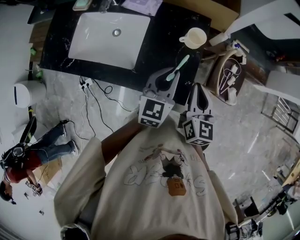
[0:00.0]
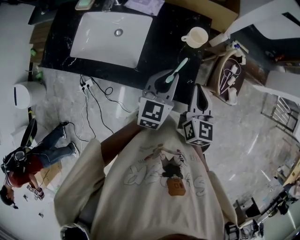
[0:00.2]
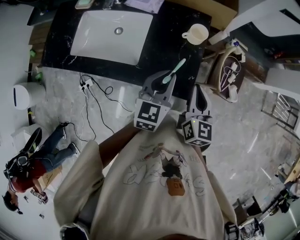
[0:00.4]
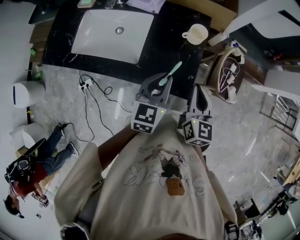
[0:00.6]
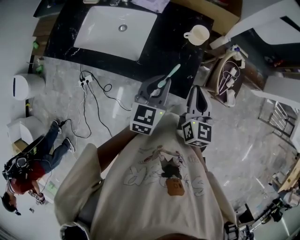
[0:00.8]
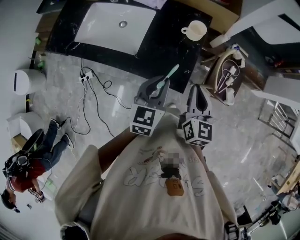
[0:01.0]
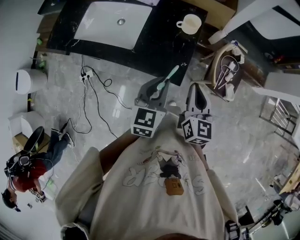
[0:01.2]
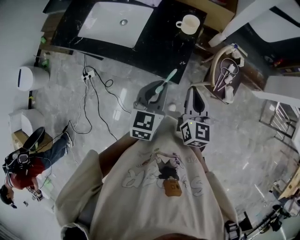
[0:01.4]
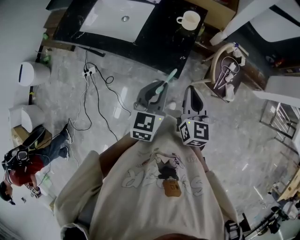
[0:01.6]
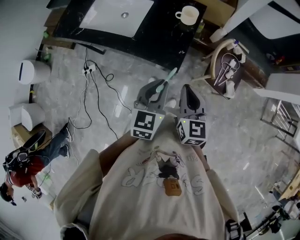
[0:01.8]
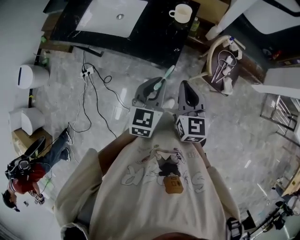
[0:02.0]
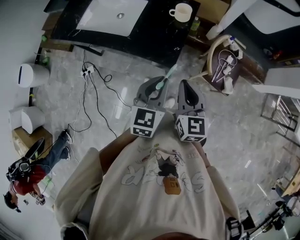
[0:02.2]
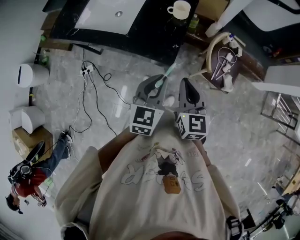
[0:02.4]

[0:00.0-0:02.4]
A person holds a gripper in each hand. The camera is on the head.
0.0 to 1.2 s: Both grippers travel together backward, about 15 cm.
1.2 to 2.4 s: The left gripper is displaced backward and to the right by about 10 cm; the right gripper moves backward, approximately 10 cm.

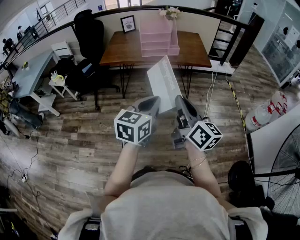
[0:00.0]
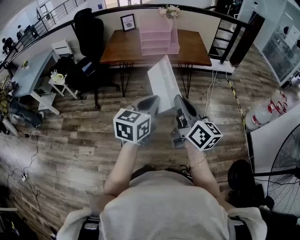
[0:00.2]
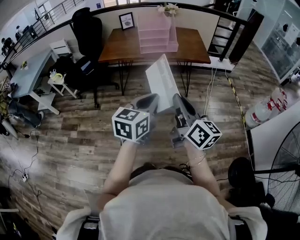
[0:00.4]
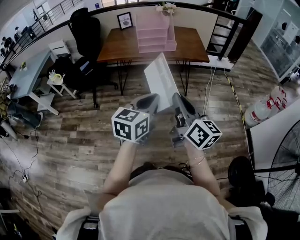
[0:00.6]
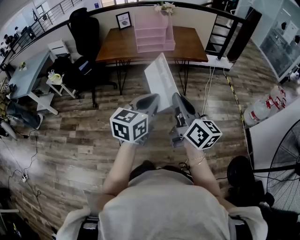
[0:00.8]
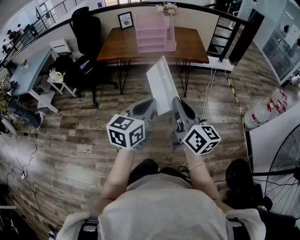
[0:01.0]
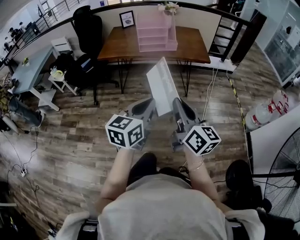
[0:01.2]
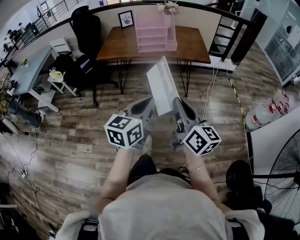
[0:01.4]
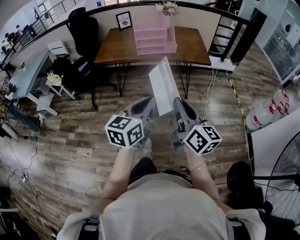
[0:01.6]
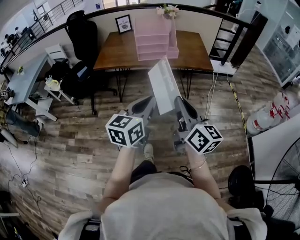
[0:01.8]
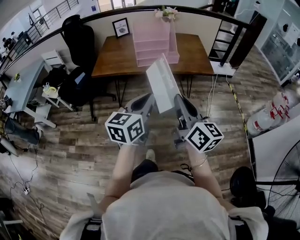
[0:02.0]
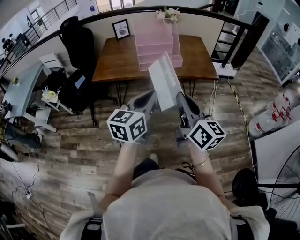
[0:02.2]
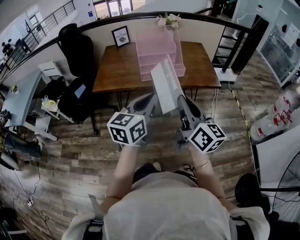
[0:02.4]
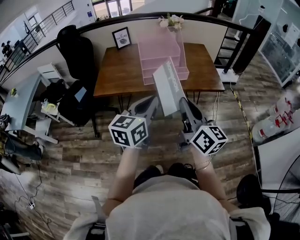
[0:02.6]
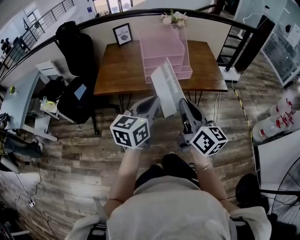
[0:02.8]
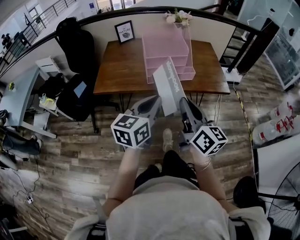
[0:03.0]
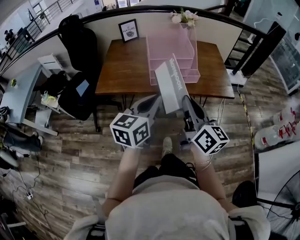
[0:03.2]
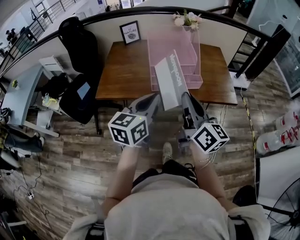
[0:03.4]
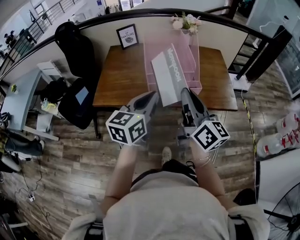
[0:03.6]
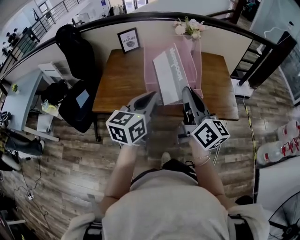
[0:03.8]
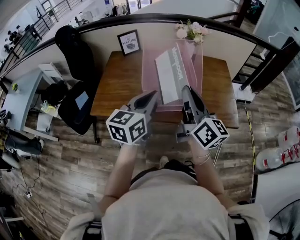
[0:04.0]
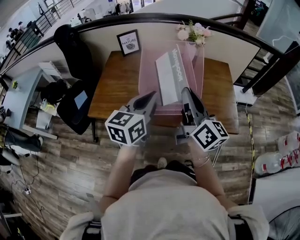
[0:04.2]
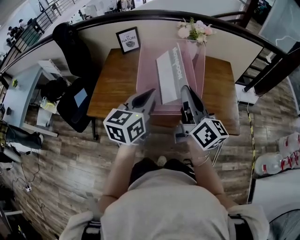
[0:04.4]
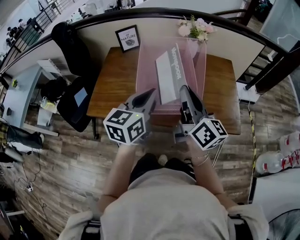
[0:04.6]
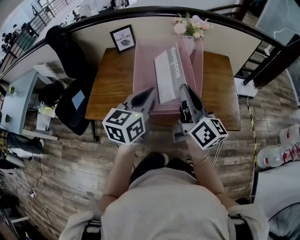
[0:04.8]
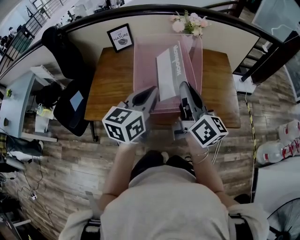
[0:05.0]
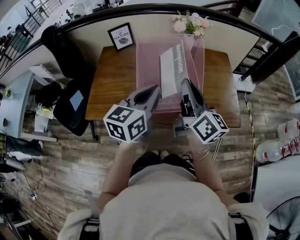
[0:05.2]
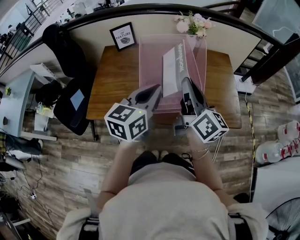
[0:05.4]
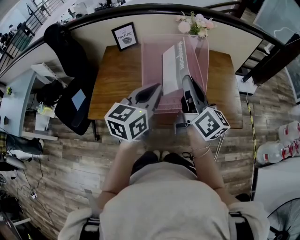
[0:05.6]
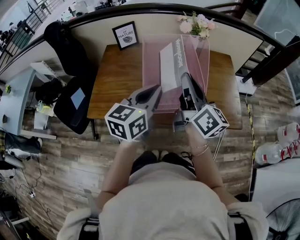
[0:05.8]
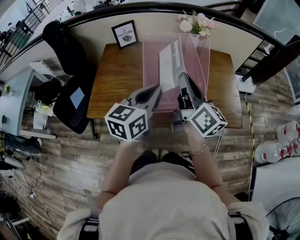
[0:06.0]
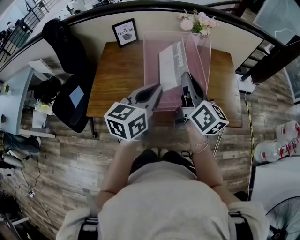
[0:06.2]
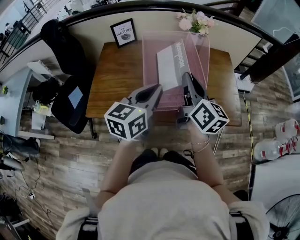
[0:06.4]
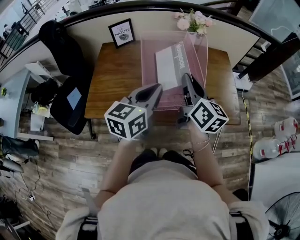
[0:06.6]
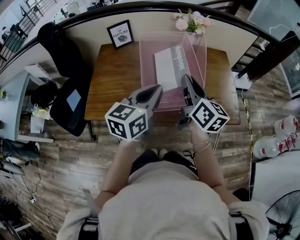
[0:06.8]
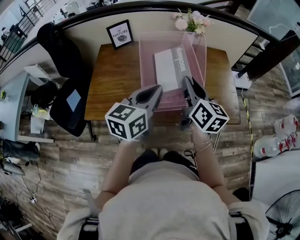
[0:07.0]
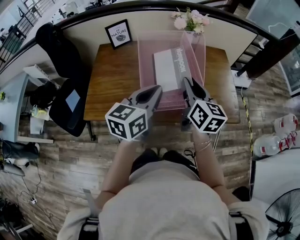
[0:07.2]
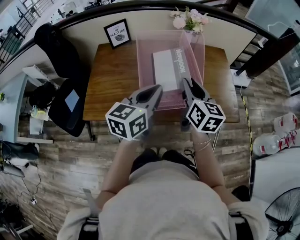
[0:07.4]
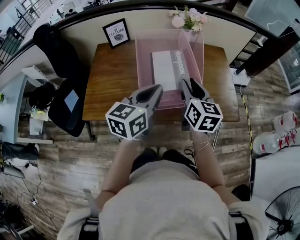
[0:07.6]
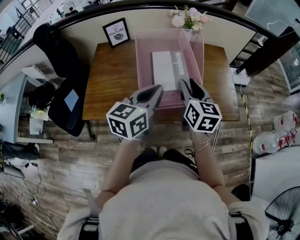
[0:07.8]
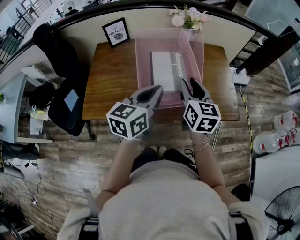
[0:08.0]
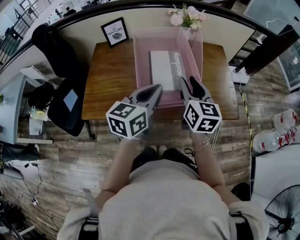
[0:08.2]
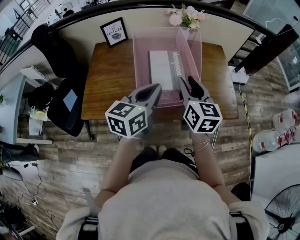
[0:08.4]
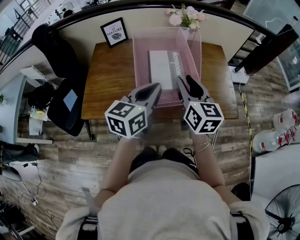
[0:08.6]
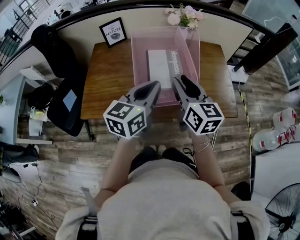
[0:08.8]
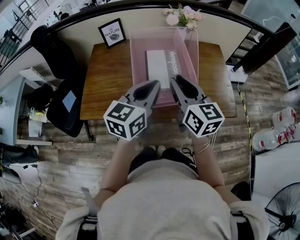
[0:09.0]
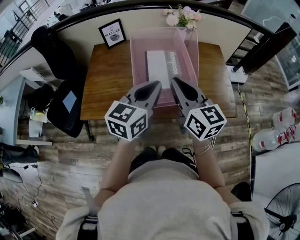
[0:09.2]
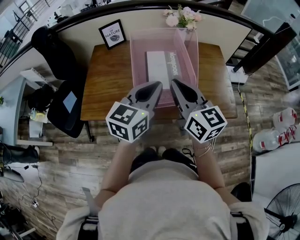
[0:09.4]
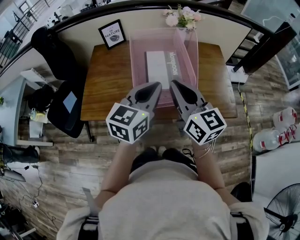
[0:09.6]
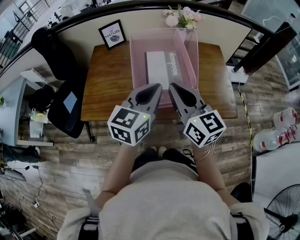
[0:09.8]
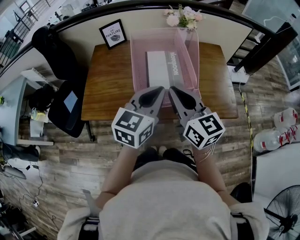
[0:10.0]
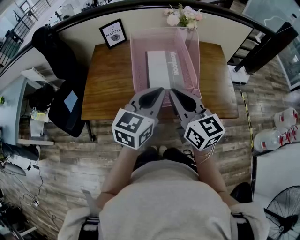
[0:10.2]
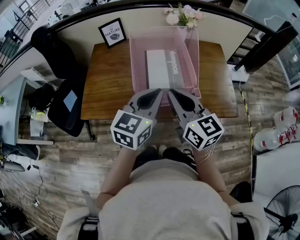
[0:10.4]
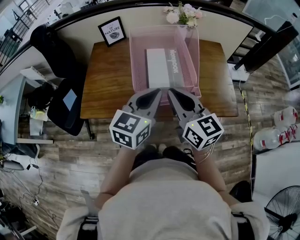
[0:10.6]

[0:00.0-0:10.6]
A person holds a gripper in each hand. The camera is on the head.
0.0 to 1.6 s: The grippers stay close to where they were, moving slightly.
1.6 to 3.0 s: The grippers both shift forward and to the left by roughly 30 cm.
3.0 to 4.6 s: Both grippers move forward, some 30 cm.
4.6 to 6.0 s: The right gripper changes place by roughly 5 cm.
6.0 to 7.6 s: The right gripper travels downward by approximately 5 cm, turns by roughly 40 degrees, and opens up.
7.6 to 9.0 s: The right gripper ends up approximately 5 cm from where it was.
9.0 to 10.6 s: The right gripper closes.

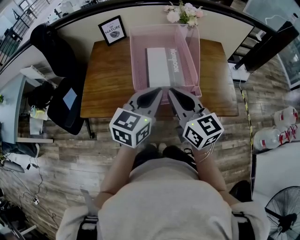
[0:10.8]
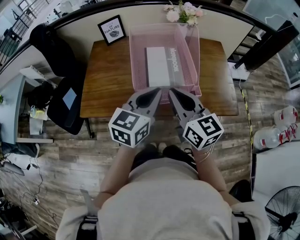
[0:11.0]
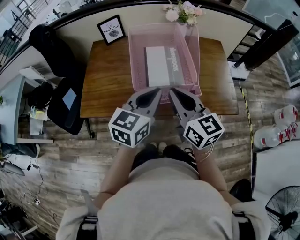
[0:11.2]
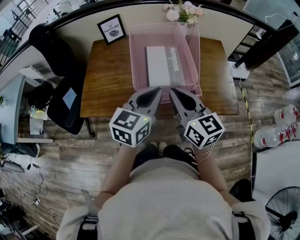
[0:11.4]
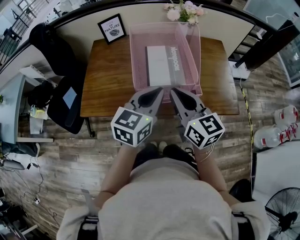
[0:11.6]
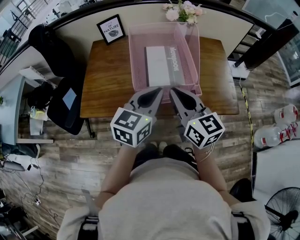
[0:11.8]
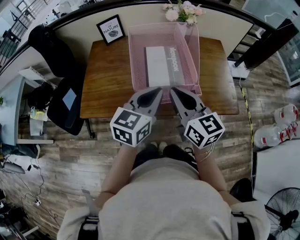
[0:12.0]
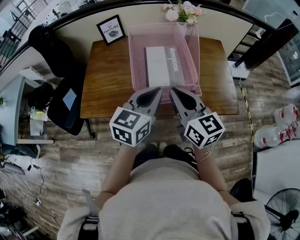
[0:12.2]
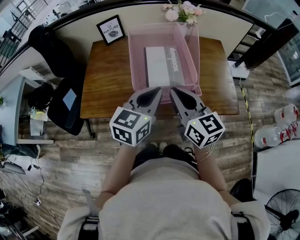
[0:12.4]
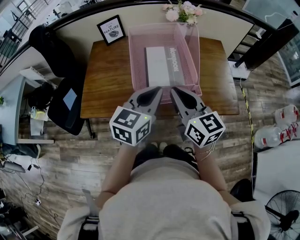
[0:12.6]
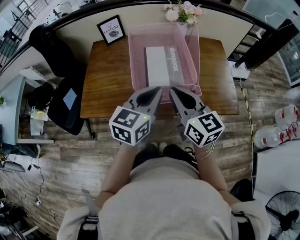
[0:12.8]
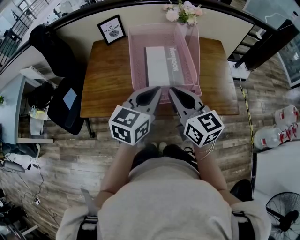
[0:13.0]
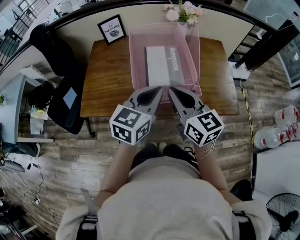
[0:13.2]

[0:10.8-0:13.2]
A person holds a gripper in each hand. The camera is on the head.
10.8 to 13.2 s: The two grippers keep their place.

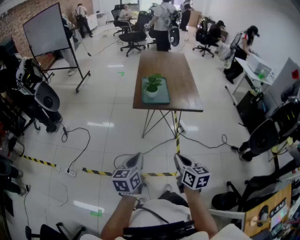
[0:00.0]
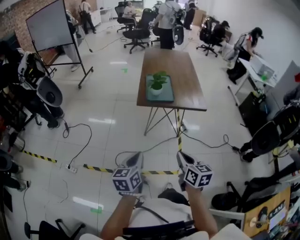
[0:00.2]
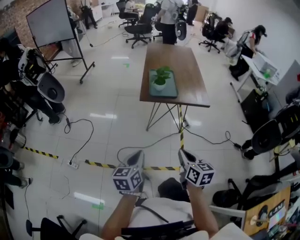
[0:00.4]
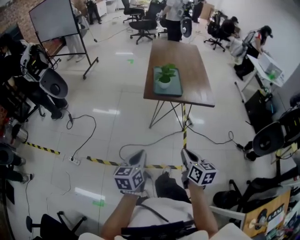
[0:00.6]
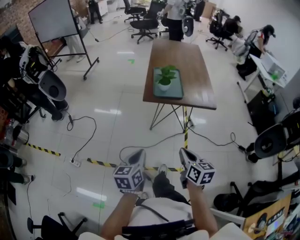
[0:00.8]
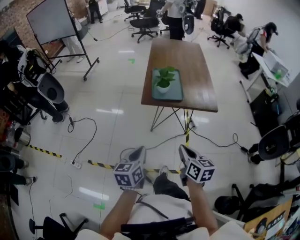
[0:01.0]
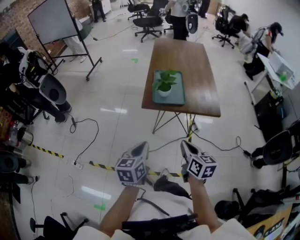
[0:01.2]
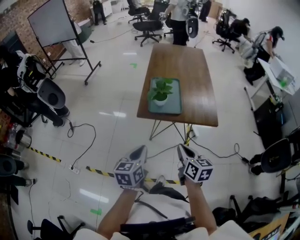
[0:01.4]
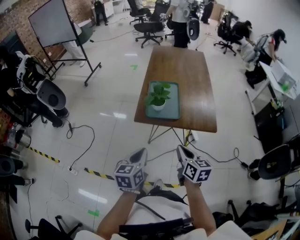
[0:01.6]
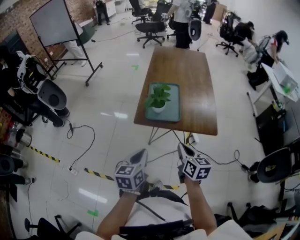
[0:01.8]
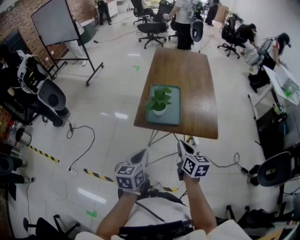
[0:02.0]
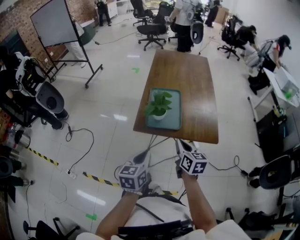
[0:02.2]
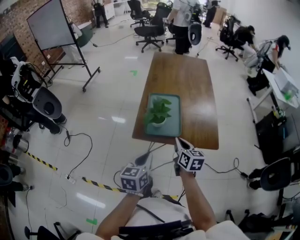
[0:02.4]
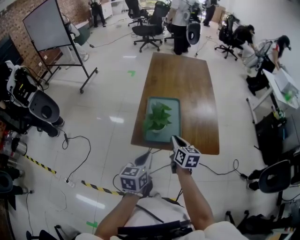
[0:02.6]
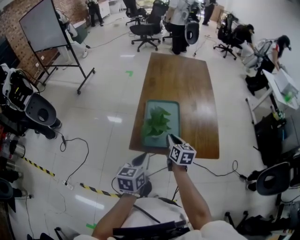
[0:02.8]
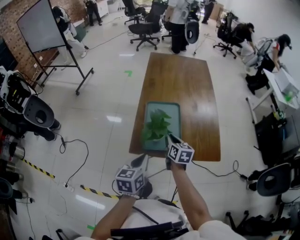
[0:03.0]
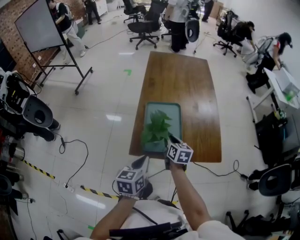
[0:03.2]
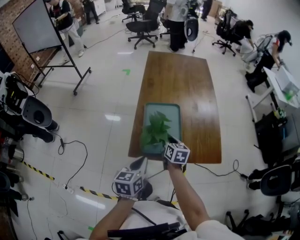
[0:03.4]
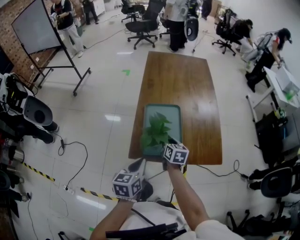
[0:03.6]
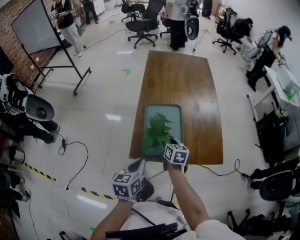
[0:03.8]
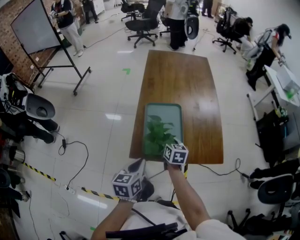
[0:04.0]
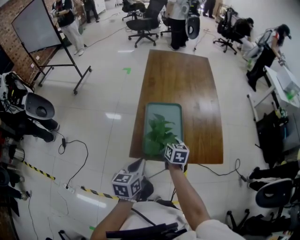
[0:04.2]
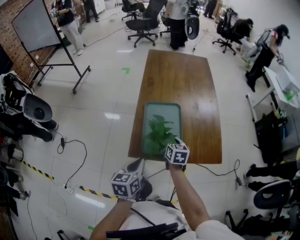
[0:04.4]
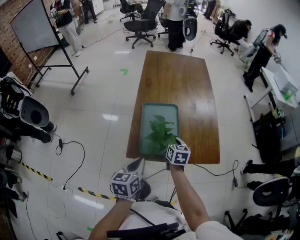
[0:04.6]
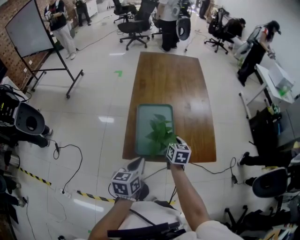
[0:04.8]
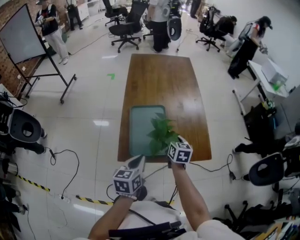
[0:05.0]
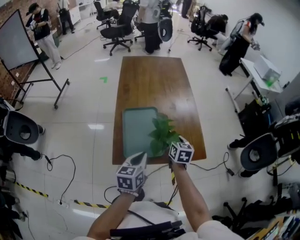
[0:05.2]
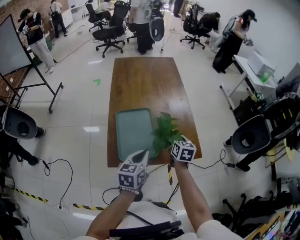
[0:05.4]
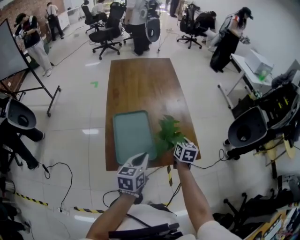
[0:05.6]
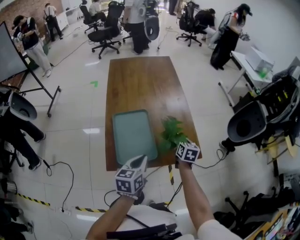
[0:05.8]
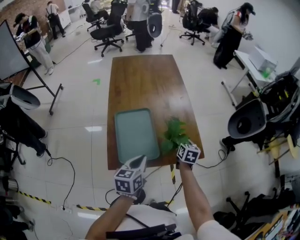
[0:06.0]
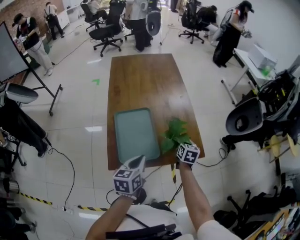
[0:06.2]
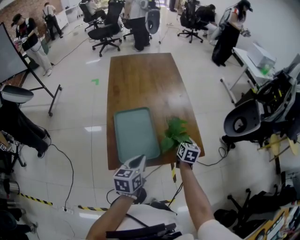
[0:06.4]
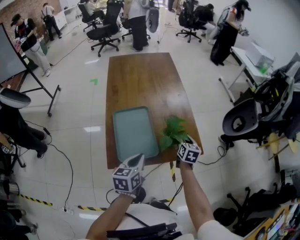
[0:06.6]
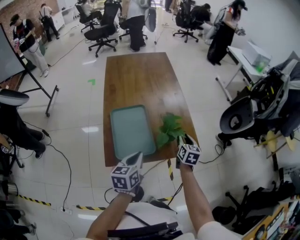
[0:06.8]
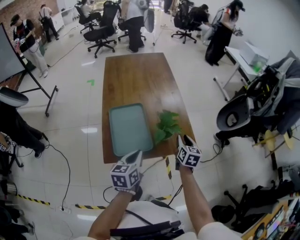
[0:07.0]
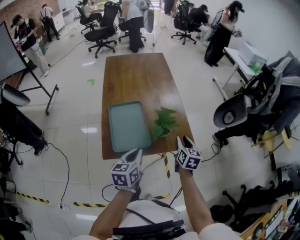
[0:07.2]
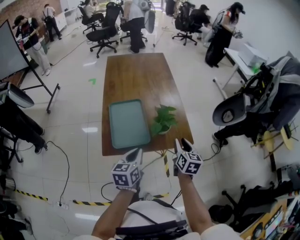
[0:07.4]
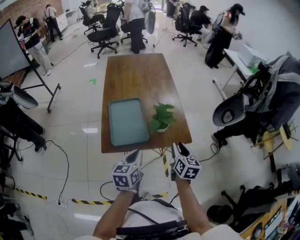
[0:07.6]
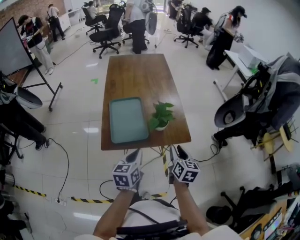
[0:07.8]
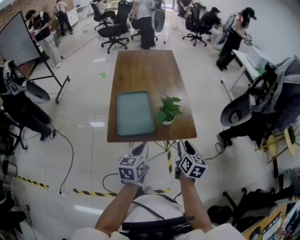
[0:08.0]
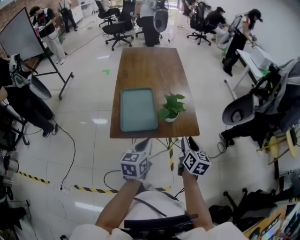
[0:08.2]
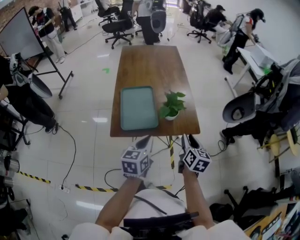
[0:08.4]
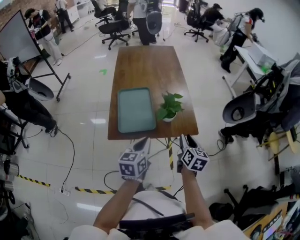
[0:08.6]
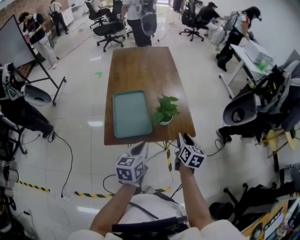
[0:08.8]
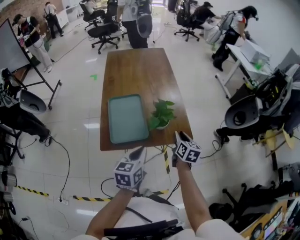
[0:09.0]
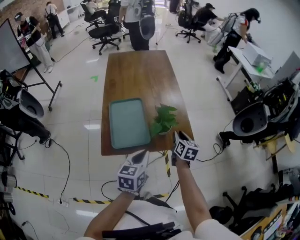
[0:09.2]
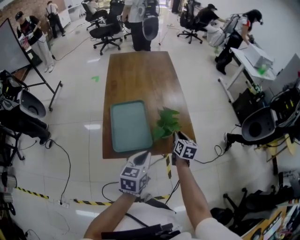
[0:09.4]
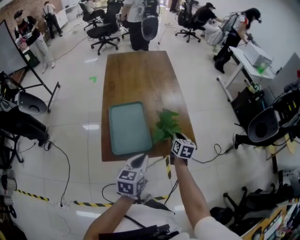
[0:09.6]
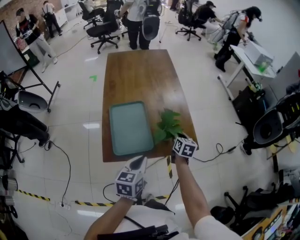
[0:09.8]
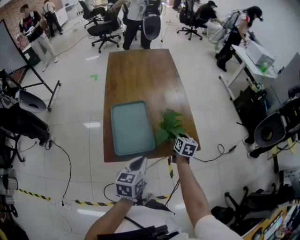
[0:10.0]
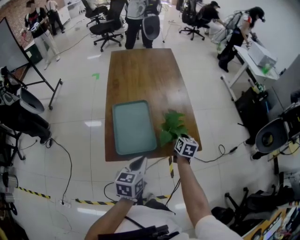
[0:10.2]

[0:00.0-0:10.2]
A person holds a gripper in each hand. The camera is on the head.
0.0 to 1.4 s: Both grippers move forward, some 20 cm.
1.4 to 3.0 s: Both grippers travel together forward, roughly 30 cm.
3.0 to 4.4 s: The grippers stay close to where they were, moving slightly.
4.4 to 5.8 s: The left gripper goes approximately 15 cm to the right and forward; the right gripper is displaced to the right by about 20 cm, and changes its angle by some 20 degrees.
5.8 to 7.2 s: The left gripper shifts by roughly 5 cm. The right gripper travels backward, to the right and upward by approximately 15 cm, and opens.
7.2 to 8.8 s: The left gripper shifts by about 5 cm. Meanwhile the right gripper goes approximately 5 cm backward.
8.8 to 10.2 s: The left gripper changes place by approximately 5 cm, while the right gripper shifts about 15 cm forward and downward, and closes its fingers.
